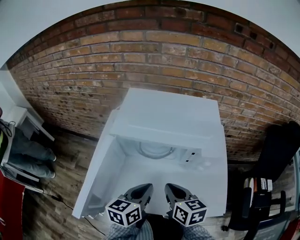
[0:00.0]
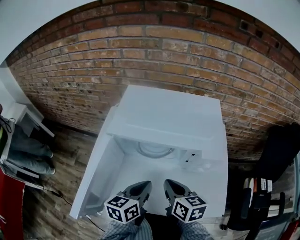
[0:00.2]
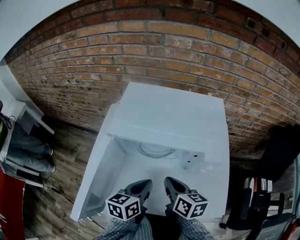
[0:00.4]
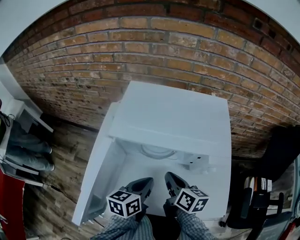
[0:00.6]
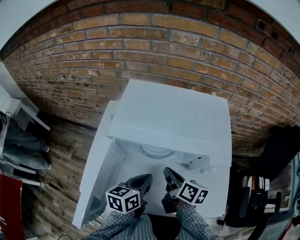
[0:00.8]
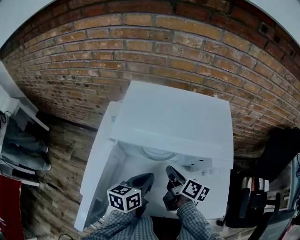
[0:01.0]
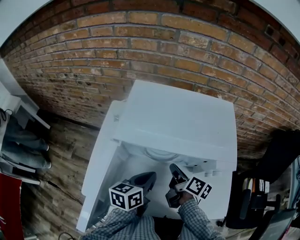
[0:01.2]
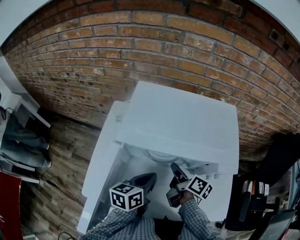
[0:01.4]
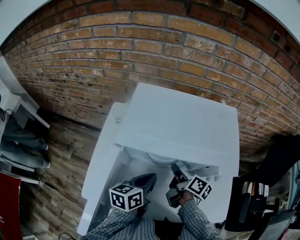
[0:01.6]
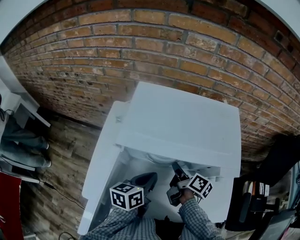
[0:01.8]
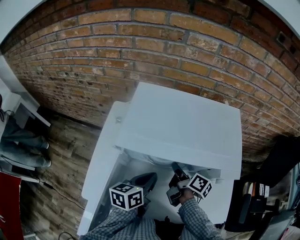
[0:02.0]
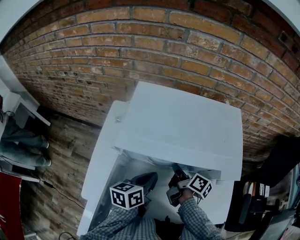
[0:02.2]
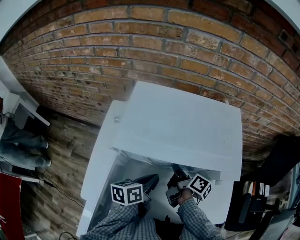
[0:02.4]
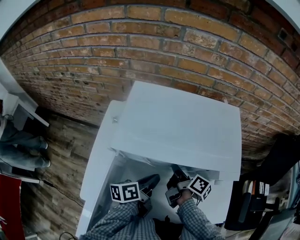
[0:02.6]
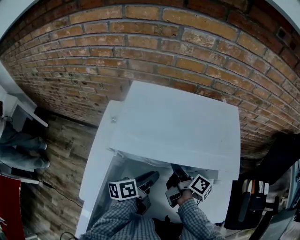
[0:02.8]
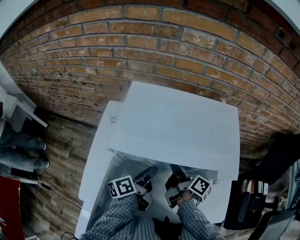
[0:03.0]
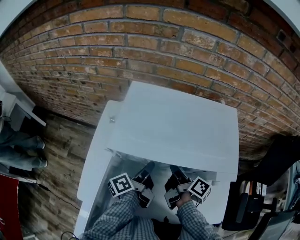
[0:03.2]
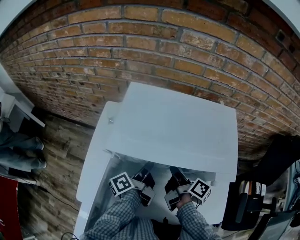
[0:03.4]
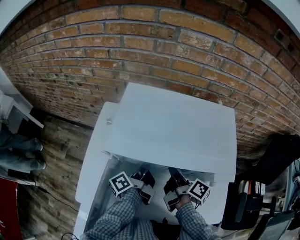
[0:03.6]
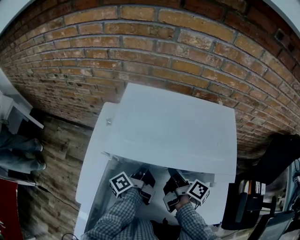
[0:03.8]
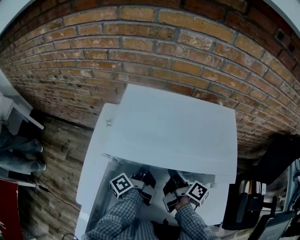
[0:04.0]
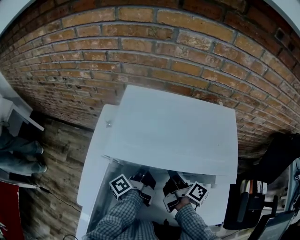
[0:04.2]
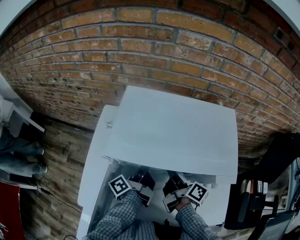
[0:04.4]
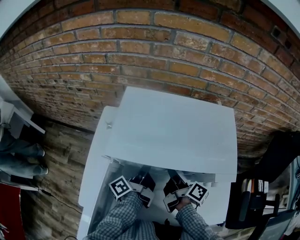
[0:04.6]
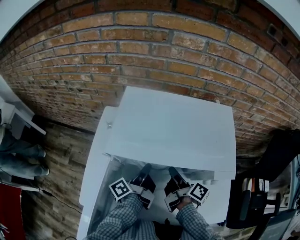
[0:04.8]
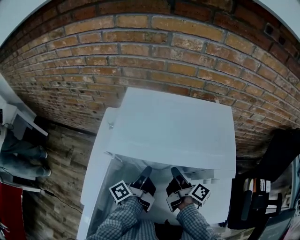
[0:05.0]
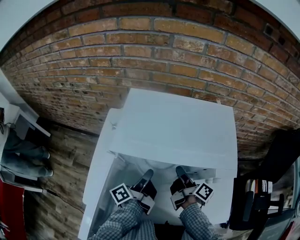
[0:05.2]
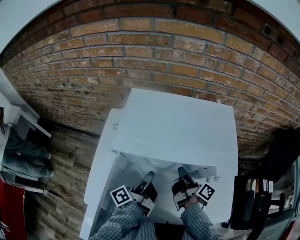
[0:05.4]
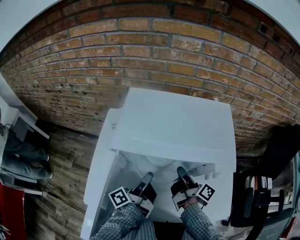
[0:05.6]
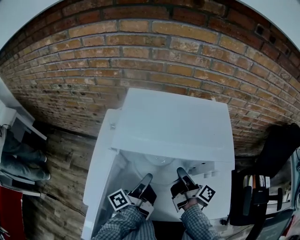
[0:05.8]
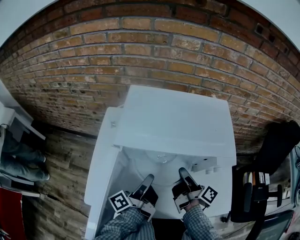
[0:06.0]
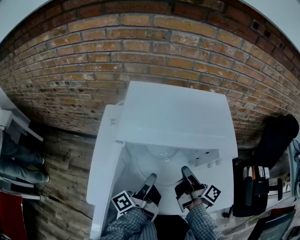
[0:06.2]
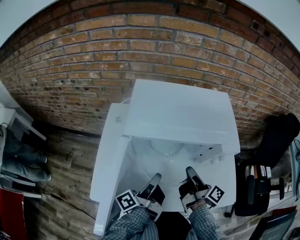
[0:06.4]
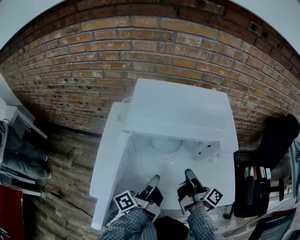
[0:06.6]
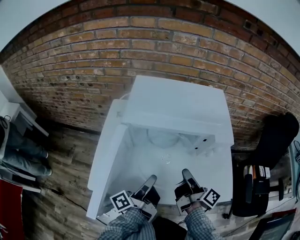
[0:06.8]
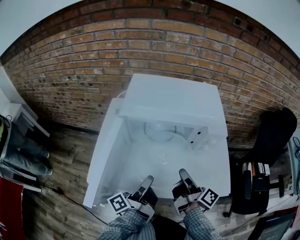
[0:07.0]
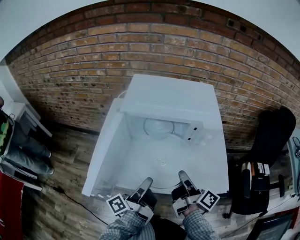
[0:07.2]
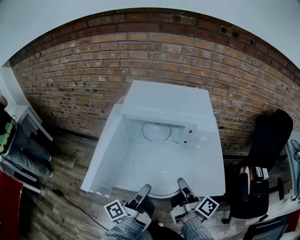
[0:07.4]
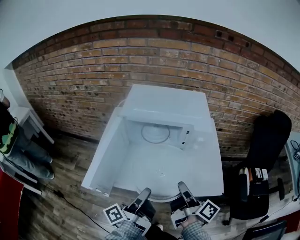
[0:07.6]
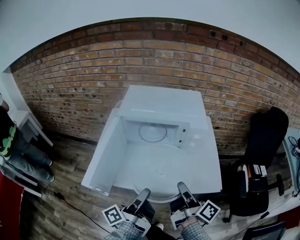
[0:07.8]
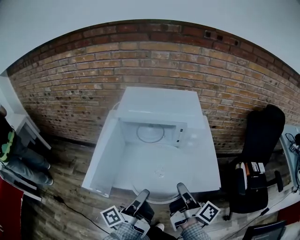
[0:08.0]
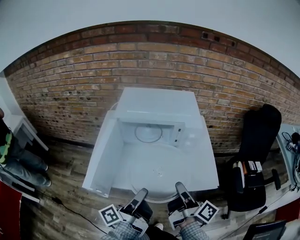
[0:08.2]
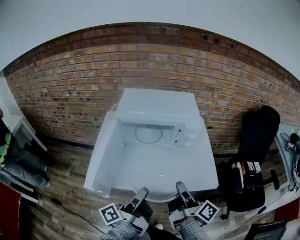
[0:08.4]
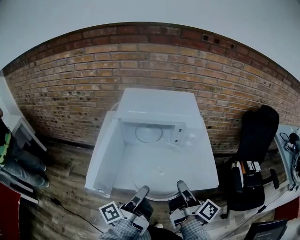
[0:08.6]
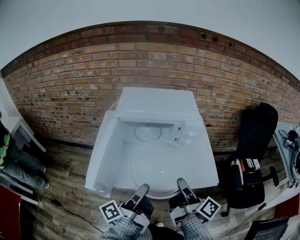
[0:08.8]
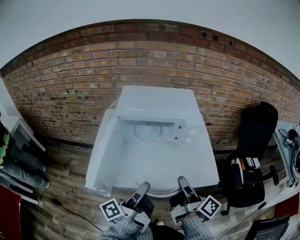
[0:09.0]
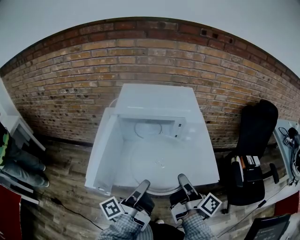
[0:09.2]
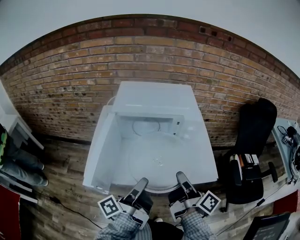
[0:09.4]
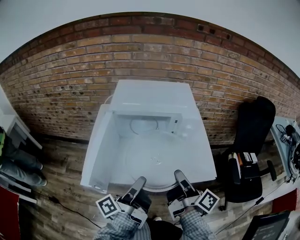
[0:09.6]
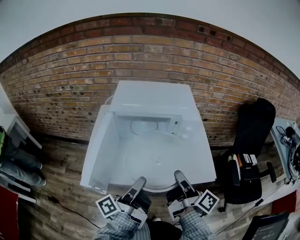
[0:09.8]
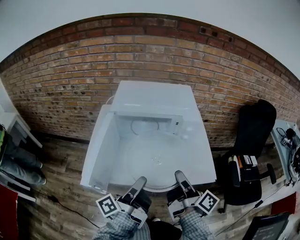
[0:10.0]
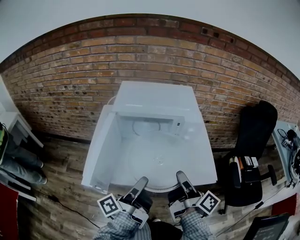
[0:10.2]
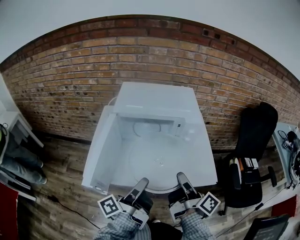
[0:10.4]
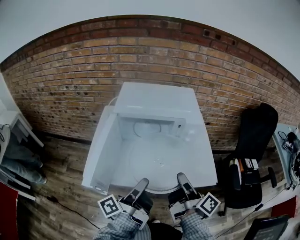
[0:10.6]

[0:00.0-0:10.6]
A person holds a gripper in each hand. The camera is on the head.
0.0 to 1.6 s: The left gripper shifts some 10 cm forward; the right gripper travels forward and downward by about 15 cm, and rotates around the line of its fingers by some 50 degrees, clockwise from behind.
1.6 to 3.0 s: The left gripper moves roughly 5 cm, changes its angle by some 40 degrees, and opens.
3.0 to 4.6 s: The left gripper rotates some 20 degrees.
4.6 to 6.0 s: The left gripper is displaced backward by roughly 10 cm. The right gripper moves backward, roughly 5 cm.
6.0 to 7.6 s: Both grippers move backward, about 25 cm.
7.6 to 9.0 s: The right gripper ends up some 5 cm from where it was.
9.0 to 10.6 s: The grippers make only small movements.

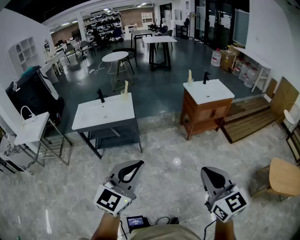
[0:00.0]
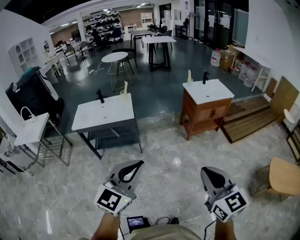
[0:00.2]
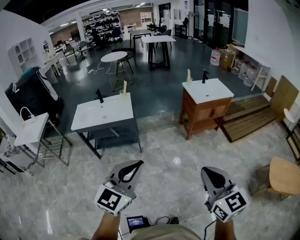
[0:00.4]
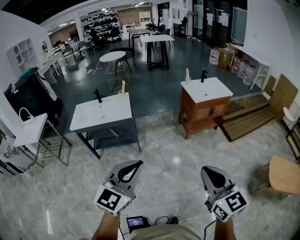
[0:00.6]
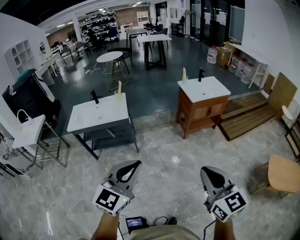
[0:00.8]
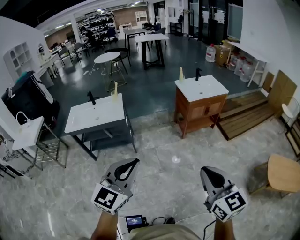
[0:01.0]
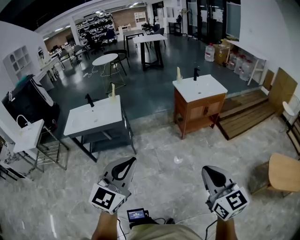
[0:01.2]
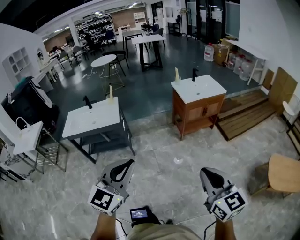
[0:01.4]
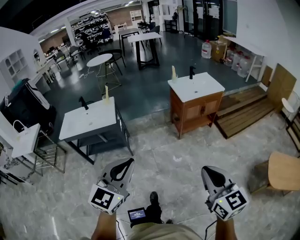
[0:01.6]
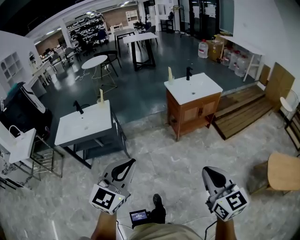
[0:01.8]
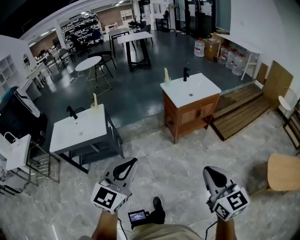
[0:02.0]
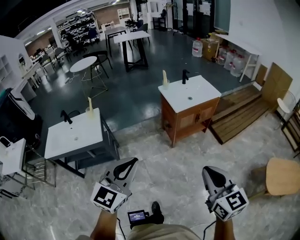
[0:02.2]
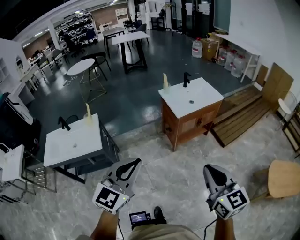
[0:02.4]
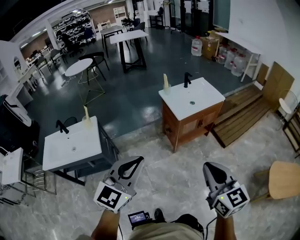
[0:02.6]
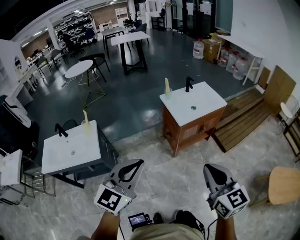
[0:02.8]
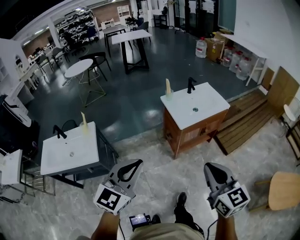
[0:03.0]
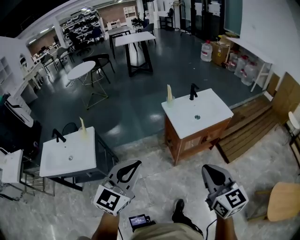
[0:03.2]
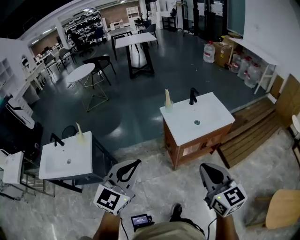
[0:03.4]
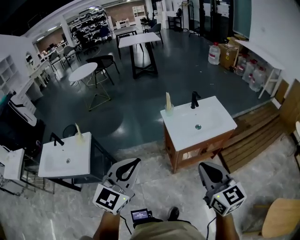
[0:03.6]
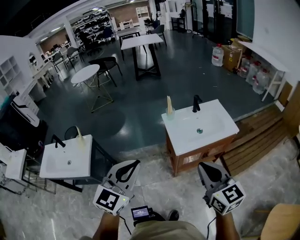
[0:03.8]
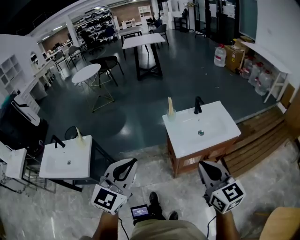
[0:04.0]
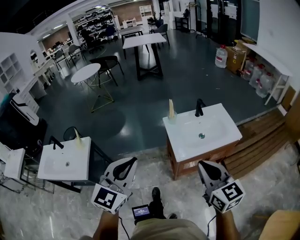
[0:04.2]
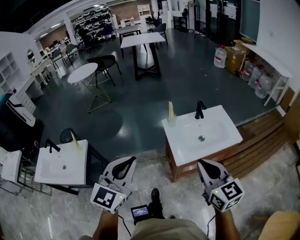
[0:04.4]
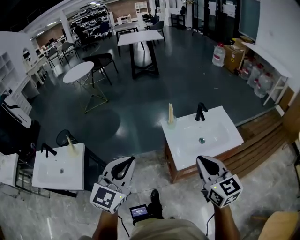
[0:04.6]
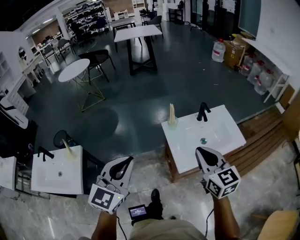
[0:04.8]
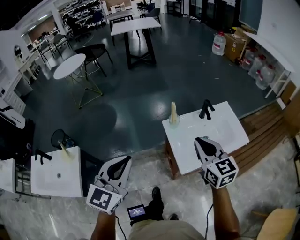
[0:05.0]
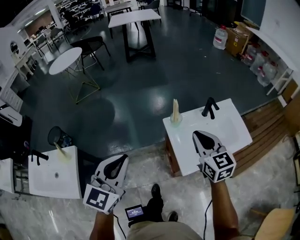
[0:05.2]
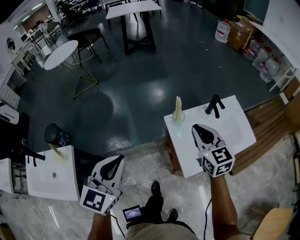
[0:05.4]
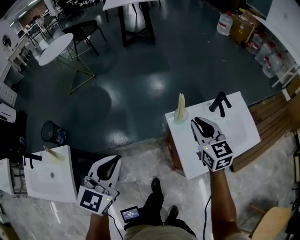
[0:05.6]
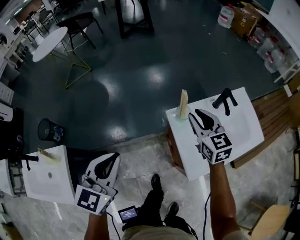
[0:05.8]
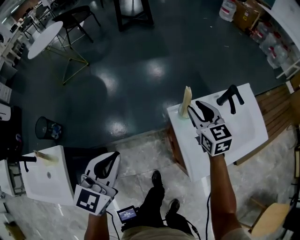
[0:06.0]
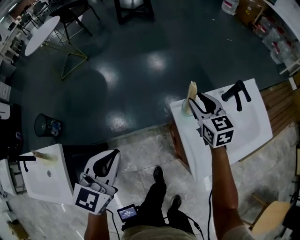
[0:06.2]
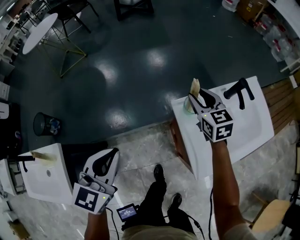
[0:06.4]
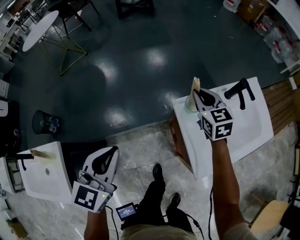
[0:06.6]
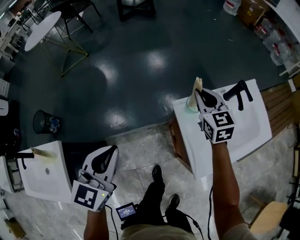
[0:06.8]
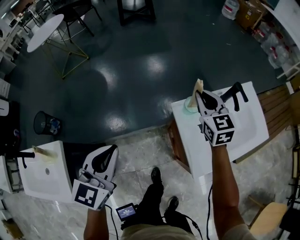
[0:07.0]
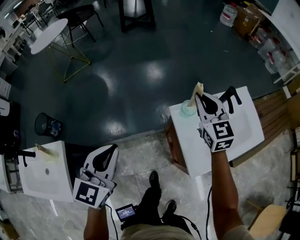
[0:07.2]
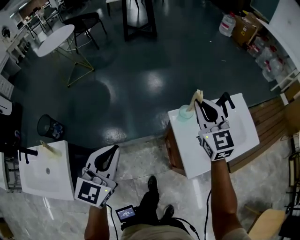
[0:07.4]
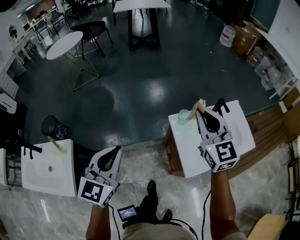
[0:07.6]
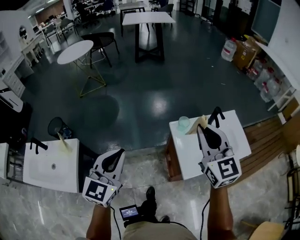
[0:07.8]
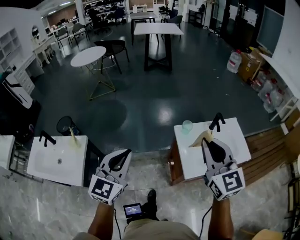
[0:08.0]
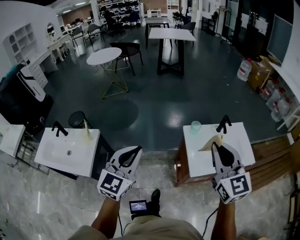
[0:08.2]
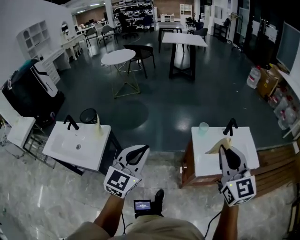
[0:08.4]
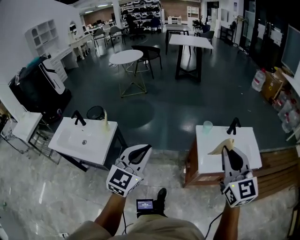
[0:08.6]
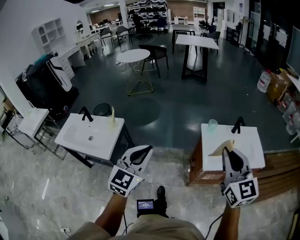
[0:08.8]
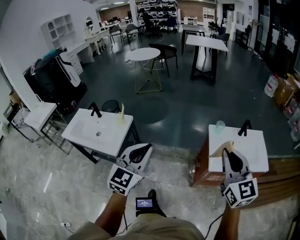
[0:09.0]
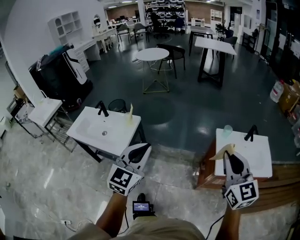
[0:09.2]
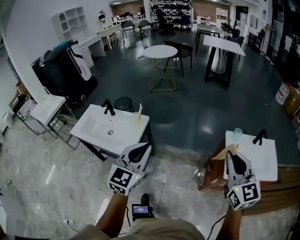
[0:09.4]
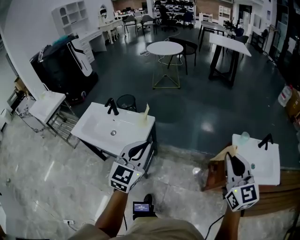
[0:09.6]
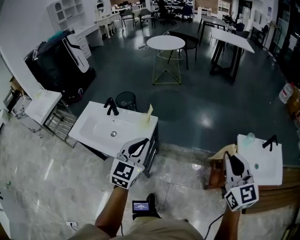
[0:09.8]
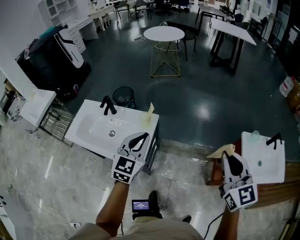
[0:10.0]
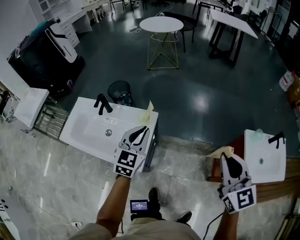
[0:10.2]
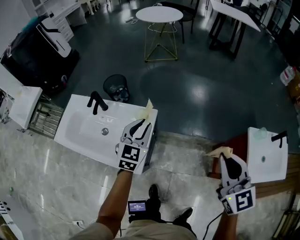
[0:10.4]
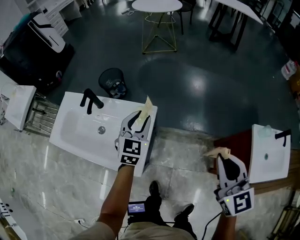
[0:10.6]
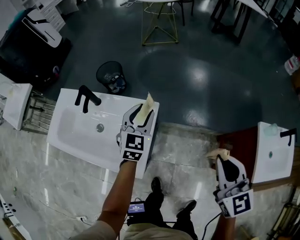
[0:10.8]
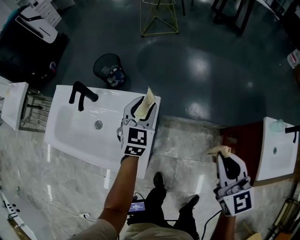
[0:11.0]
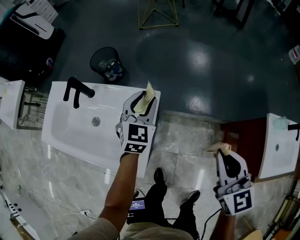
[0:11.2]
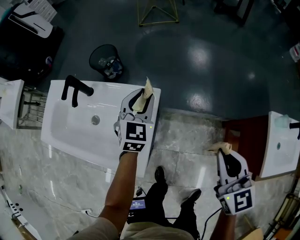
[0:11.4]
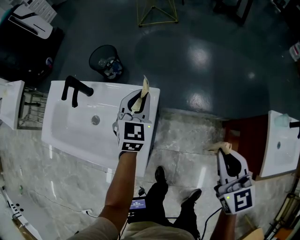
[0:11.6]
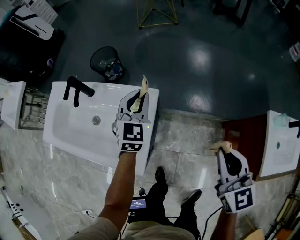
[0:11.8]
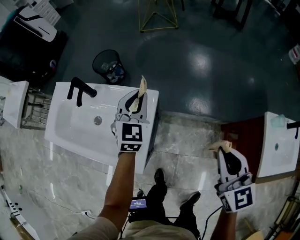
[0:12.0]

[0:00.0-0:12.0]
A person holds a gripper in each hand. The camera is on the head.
0.0 to 1.6 s: Both grippers travel together to the right and forward, about 20 cm.
1.6 to 3.0 s: The pair of grippers is taken forward, about 50 cm.
3.0 to 4.4 s: The grippers both shift forward by about 30 cm.
4.4 to 6.0 s: Both grippers travel together forward and downward, some 50 cm. The right gripper opens.
6.0 to 7.6 s: The right gripper goes approximately 25 cm upward and backward, swivels roughly 20 degrees, and closes its fingers, while the left gripper travels upward and backward by about 10 cm.
7.6 to 9.0 s: Both grippers move backward, about 35 cm.
9.0 to 10.4 s: The two grippers travel together, to the left and forward, some 50 cm. The right gripper travels downward by approximately 15 cm, while the left gripper travels downward by some 25 cm.
10.4 to 12.0 s: The left gripper goes roughly 15 cm forward and downward, and opens and closes again. Meanwhile the right gripper heads downward and forward, covering roughly 15 cm.

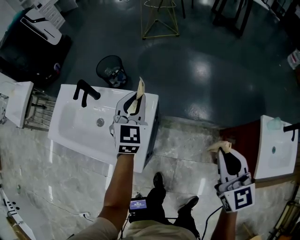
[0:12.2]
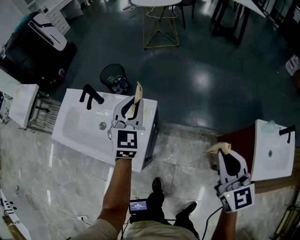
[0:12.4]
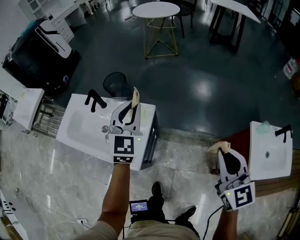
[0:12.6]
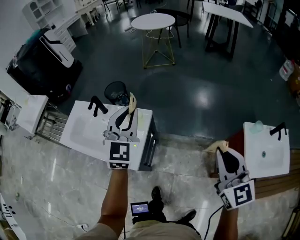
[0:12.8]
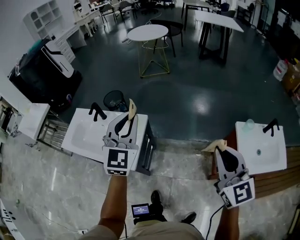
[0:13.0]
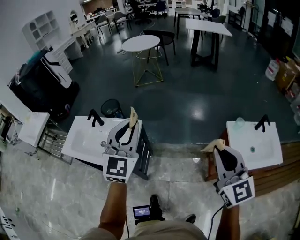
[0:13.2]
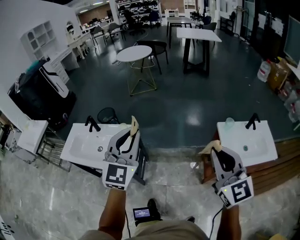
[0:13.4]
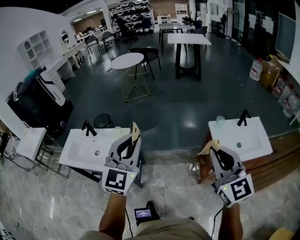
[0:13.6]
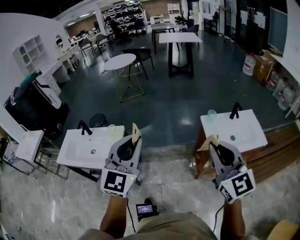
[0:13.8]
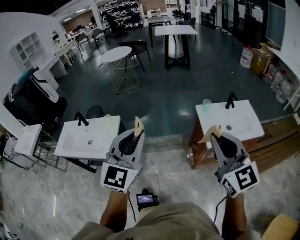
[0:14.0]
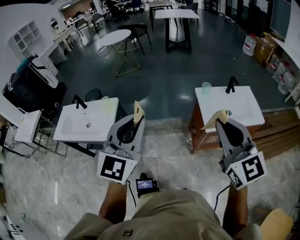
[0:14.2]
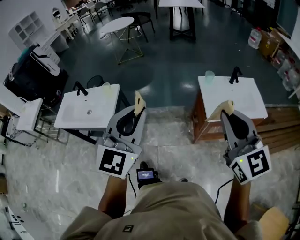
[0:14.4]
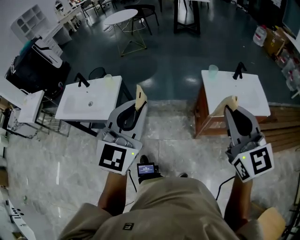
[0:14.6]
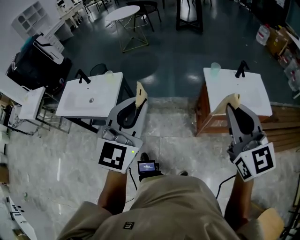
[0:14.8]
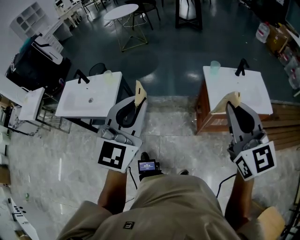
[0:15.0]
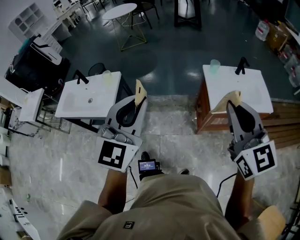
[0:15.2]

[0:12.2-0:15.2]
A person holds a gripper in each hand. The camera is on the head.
12.2 to 13.8 s: Both grippers are carried backward and to the right, about 50 cm. The two grippers go approximately 30 cm upward. The right gripper swivels roughly 20 degrees; the left gripper changes its angle by some 30 degrees.
13.8 to 15.2 s: The right gripper heads to the right, covering about 10 cm; the left gripper shifts roughly 10 cm to the right and backward.
